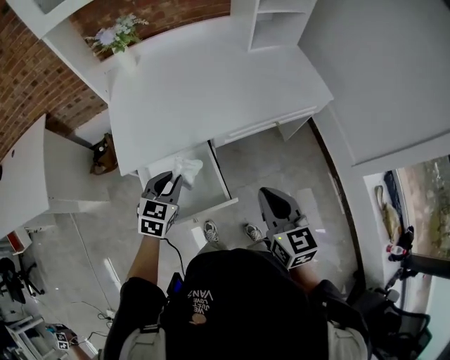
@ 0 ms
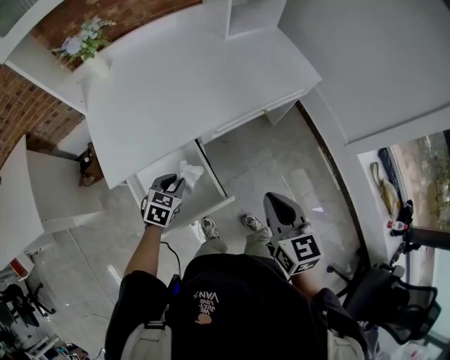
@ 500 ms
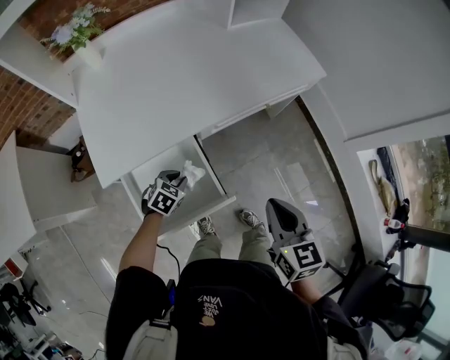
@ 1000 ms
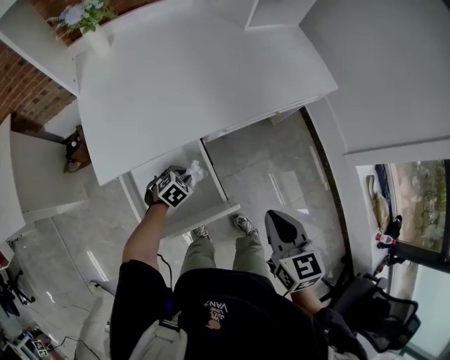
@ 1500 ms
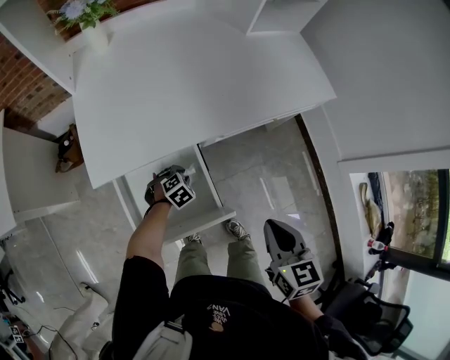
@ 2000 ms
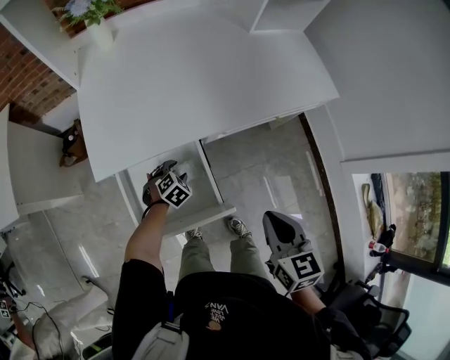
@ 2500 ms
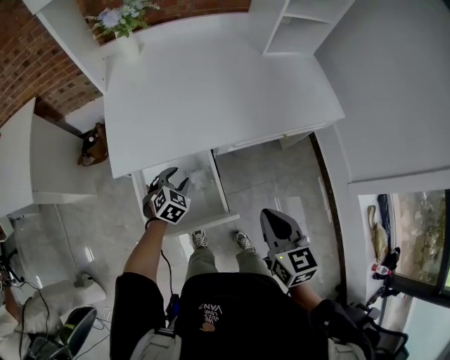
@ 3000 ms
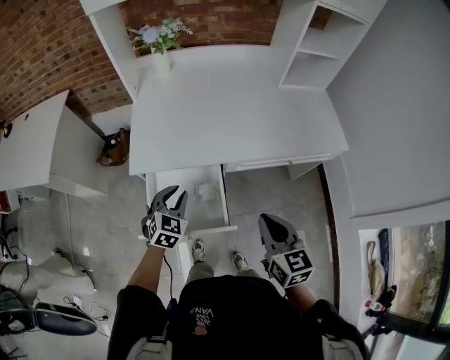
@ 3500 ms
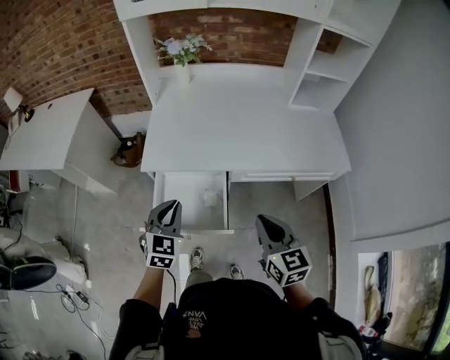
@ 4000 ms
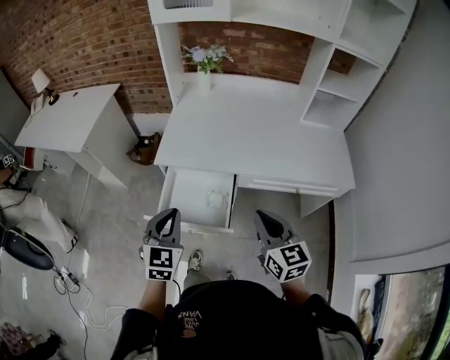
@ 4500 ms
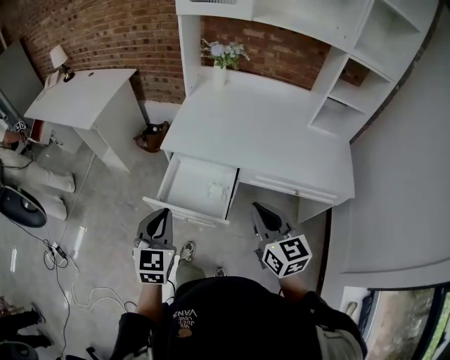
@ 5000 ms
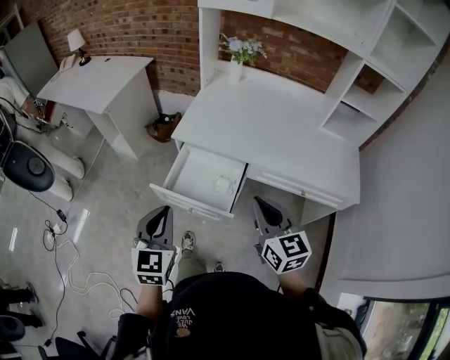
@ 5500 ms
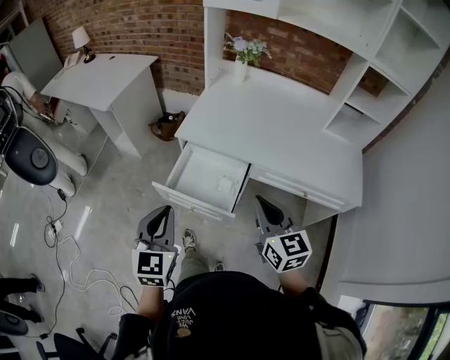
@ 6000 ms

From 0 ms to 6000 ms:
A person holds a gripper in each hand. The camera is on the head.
From 0 ms to 2000 ms: The left gripper shifts approximately 30 cm downward, and tips its fingers downward by roughly 30 degrees. Meanwhile the right gripper moves downward, roughly 10 cm.
From 2000 ms to 4000 ms: The left gripper travels upward by some 35 cm, tilts its fingers about 40 degrees upward, and opens, then closes again, while the right gripper moves upward, about 10 cm, and changes its angle by roughly 30 degrees.
From 4000 ms to 6000 ms: The right gripper travels upward by roughly 5 cm, and turns by approximately 20 degrees, while the left gripper heads backward and upward, covering approximately 20 cm, and changes its angle by about 30 degrees.

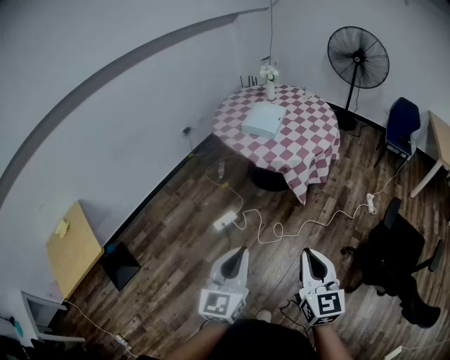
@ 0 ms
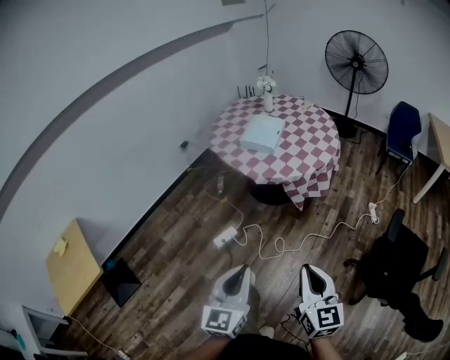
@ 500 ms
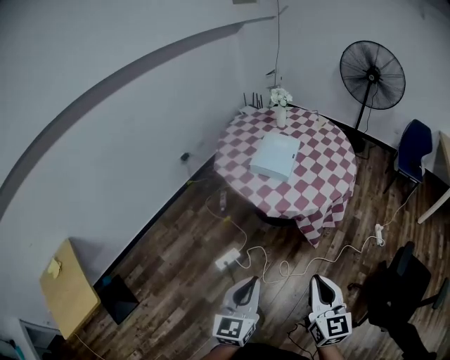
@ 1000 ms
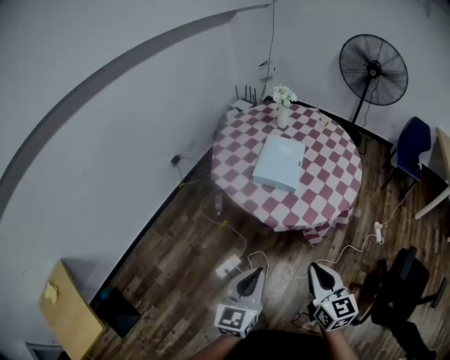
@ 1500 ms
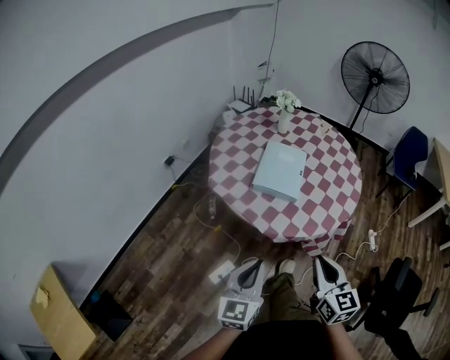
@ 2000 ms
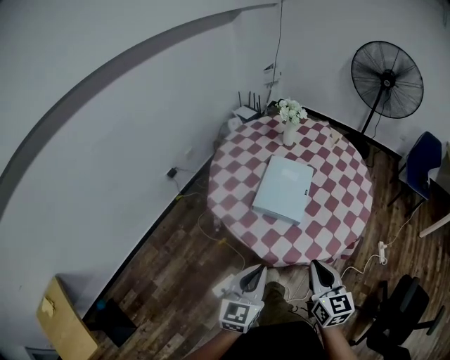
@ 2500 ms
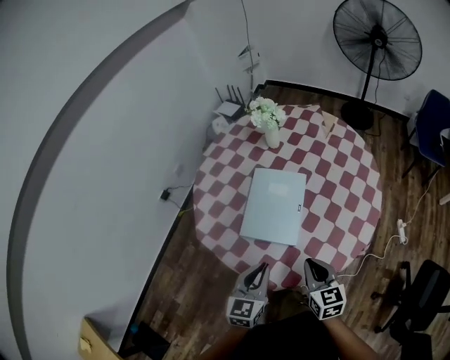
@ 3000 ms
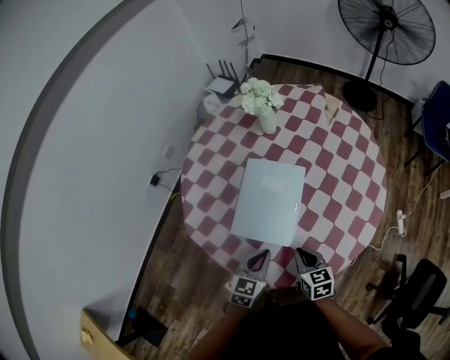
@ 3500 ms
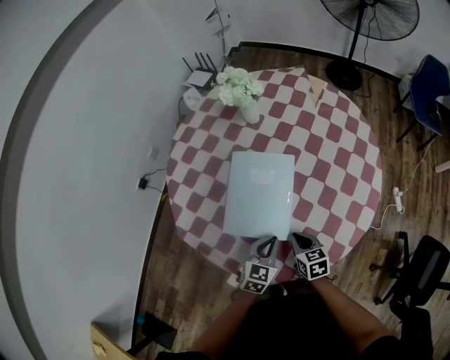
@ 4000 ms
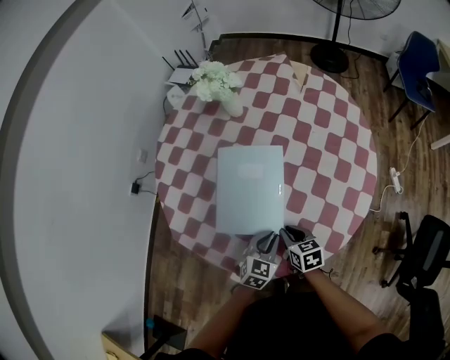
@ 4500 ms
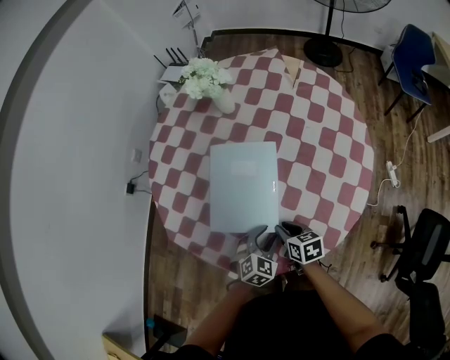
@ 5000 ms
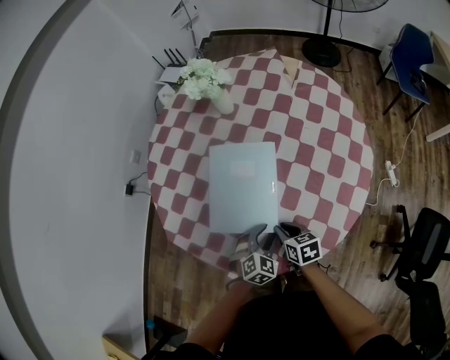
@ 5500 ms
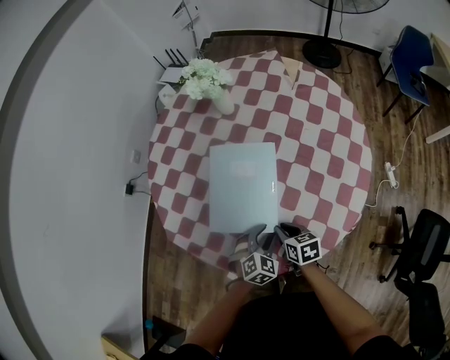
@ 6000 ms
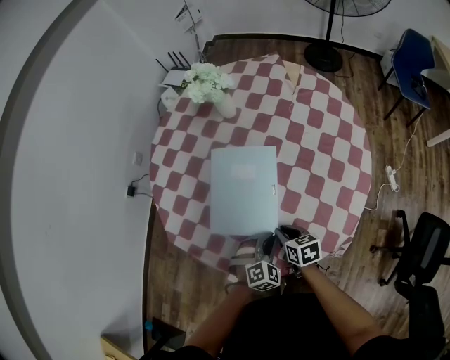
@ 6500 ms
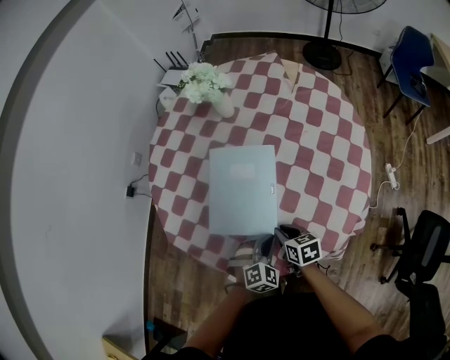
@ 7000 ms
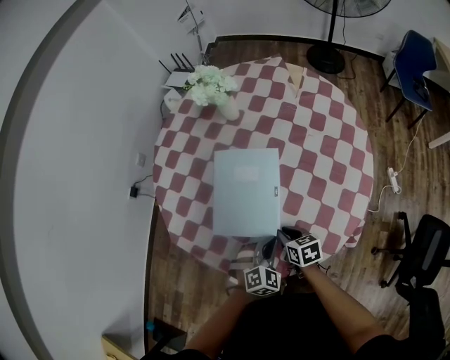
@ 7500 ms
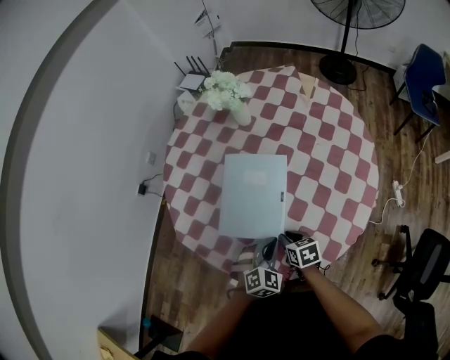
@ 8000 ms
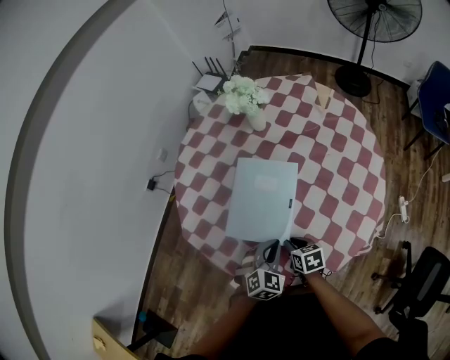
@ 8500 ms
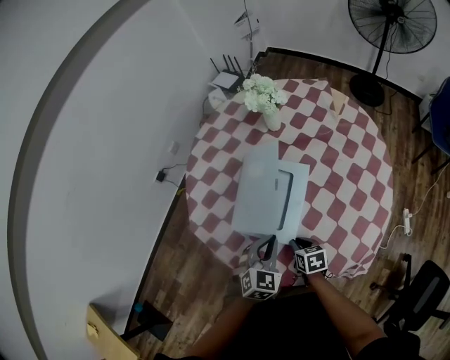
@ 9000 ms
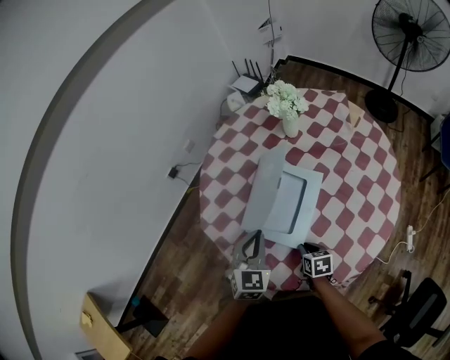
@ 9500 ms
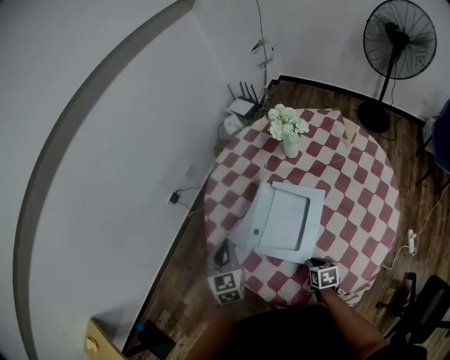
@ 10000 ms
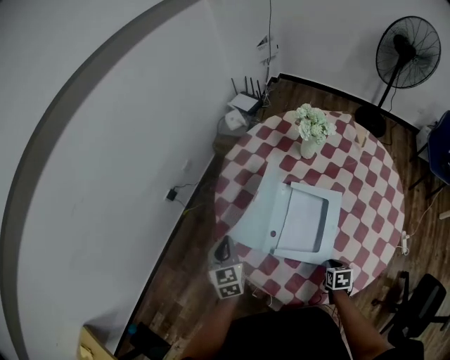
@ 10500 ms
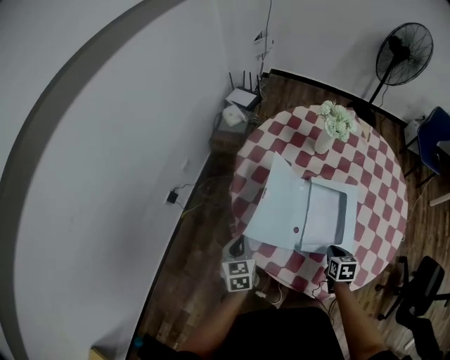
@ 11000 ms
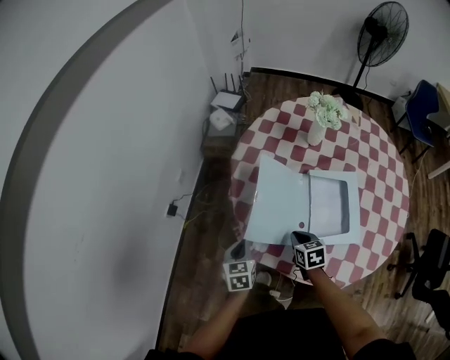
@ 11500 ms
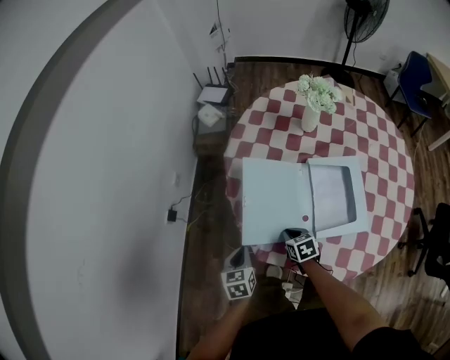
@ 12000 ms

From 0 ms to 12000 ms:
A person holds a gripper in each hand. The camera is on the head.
From 0 ms to 2000 ms: The two grippers travel together, forward, roughly 60 cm.
From 2000 ms to 4000 ms: Both grippers are carried forward, about 40 cm. The two grippers go some 30 cm downward. The right gripper changes its angle by some 30 degrees, while the left gripper swivels approximately 40 degrees.
From 4000 ms to 6000 ms: The left gripper moves downward, roughly 5 cm, swivels roughly 30 degrees, and opens.
From 6000 ms to 8000 ms: The left gripper is displaced upward by roughly 5 cm, and closes its fingers.
From 8000 ms to 10000 ms: The left gripper shifts roughly 35 cm to the left, upward and forward, and rotates some 60 degrees.
From 10000 ms to 12000 ms: The left gripper moves approximately 30 cm, and turns by some 30 degrees, while the right gripper ends up roughly 40 cm from where it was.

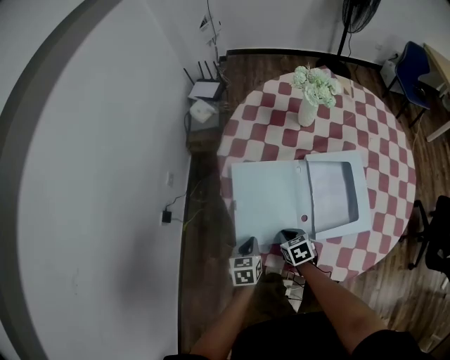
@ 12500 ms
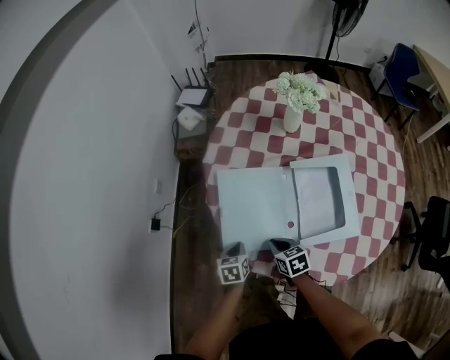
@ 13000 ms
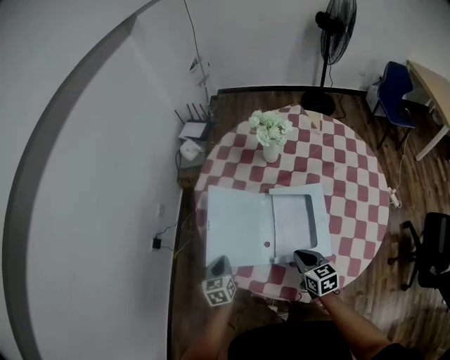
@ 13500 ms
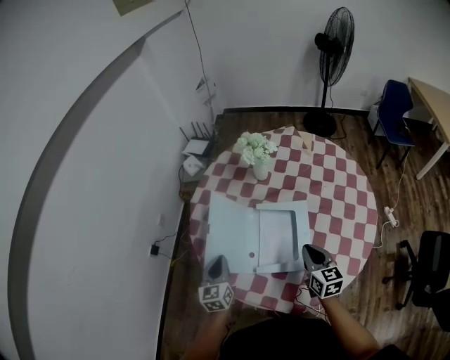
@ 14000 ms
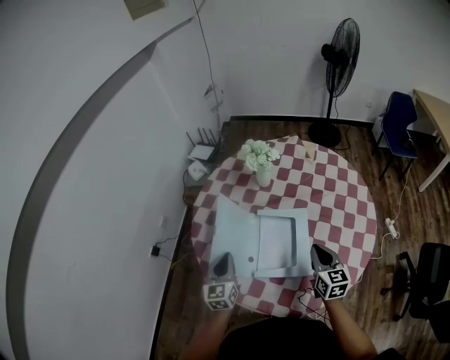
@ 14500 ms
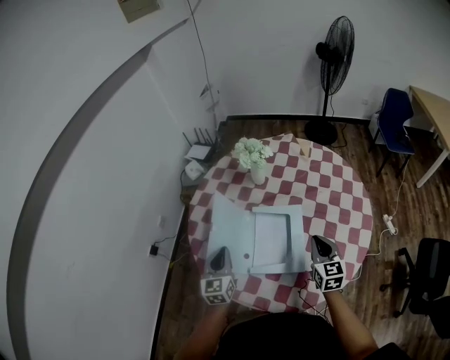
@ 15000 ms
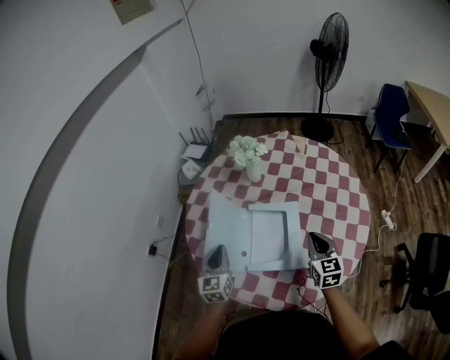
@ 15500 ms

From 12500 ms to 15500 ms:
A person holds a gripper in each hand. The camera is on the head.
From 12500 ms to 14000 ms: The left gripper is displaced upward and to the right by about 25 cm, and rotates approximately 30 degrees; the right gripper goes approximately 40 cm to the right and upward, and angles its fingers upward, by about 30 degrees.
From 14000 ms to 15500 ms: Both grippers move to the right, approximately 5 cm.

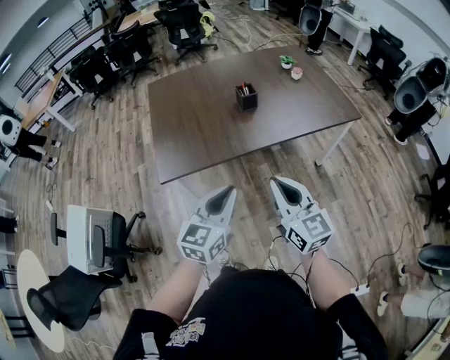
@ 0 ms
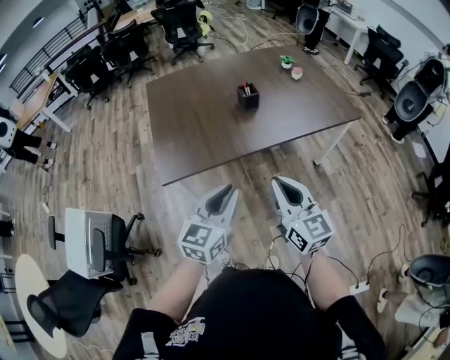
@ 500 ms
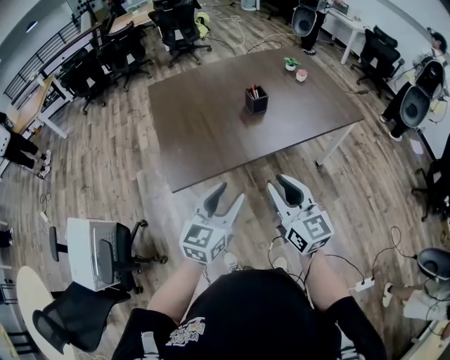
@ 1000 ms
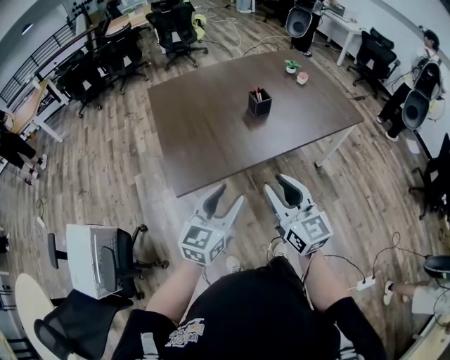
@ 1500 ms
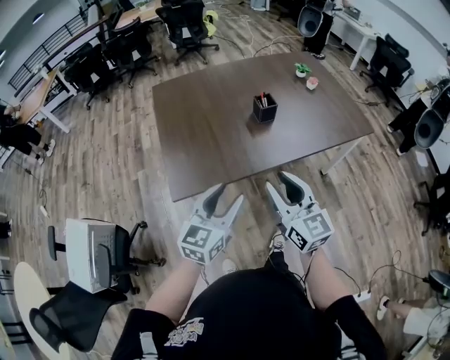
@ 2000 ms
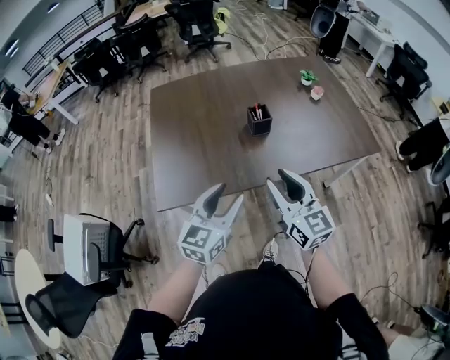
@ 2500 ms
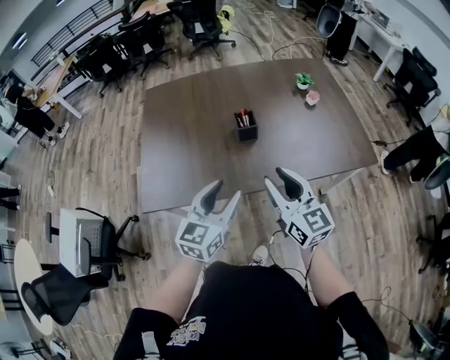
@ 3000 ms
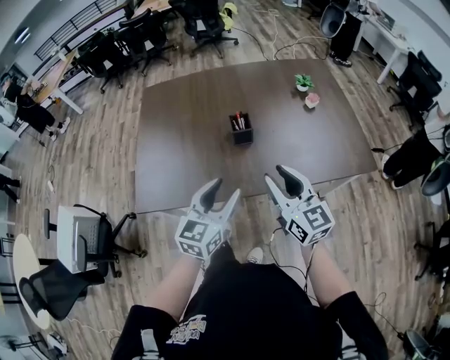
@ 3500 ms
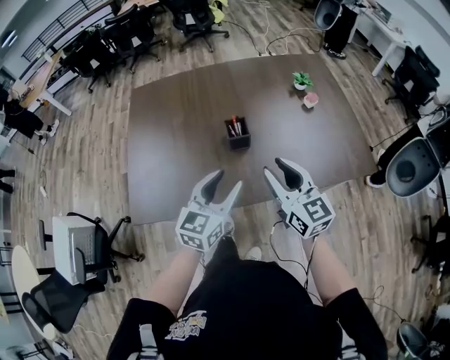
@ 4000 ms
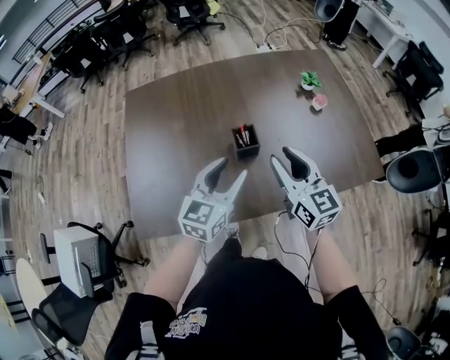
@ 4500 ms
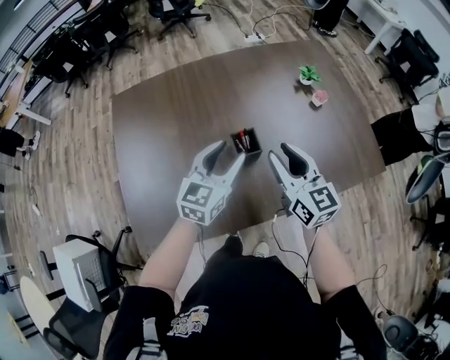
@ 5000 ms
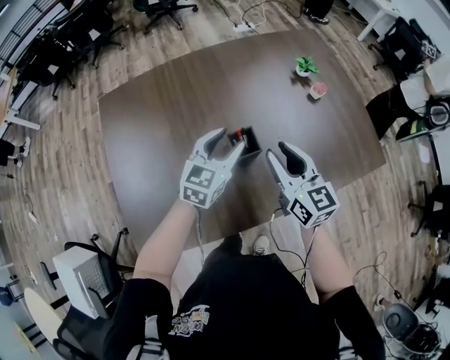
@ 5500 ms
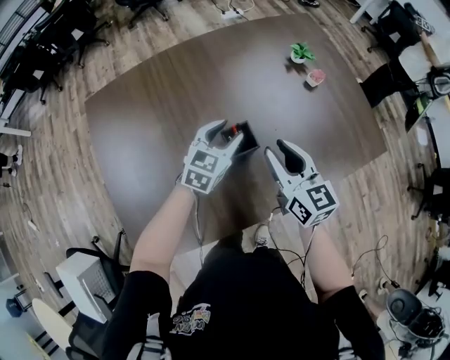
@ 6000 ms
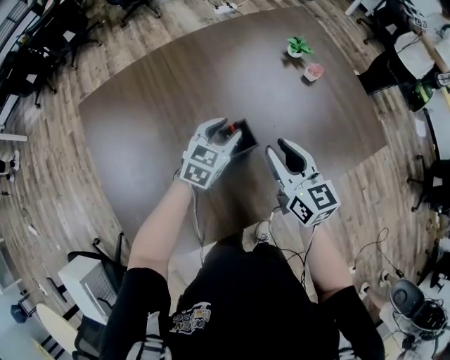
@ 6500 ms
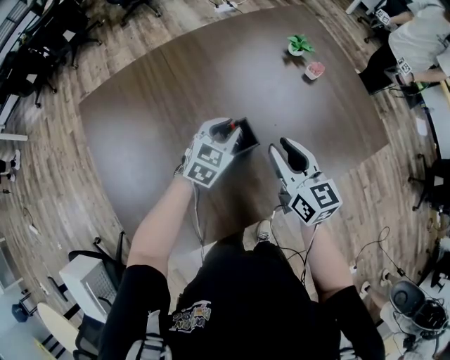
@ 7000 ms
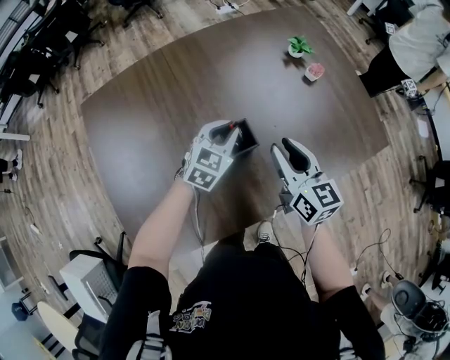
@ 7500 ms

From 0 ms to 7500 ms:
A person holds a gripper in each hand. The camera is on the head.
From 0 ms to 2000 ms: The grippers both shift to the left and forward by some 15 cm. The left gripper opens; the right gripper opens.
From 2000 ms to 4000 ms: The two grippers go roughly 30 cm forward and to the right.
From 4000 ms to 5500 ms: The grippers both shift forward by about 20 cm.
From 5500 ms to 7500 ms: The right gripper shifts by roughly 5 cm. The left gripper moves downward, about 10 cm, and closes its fingers.
